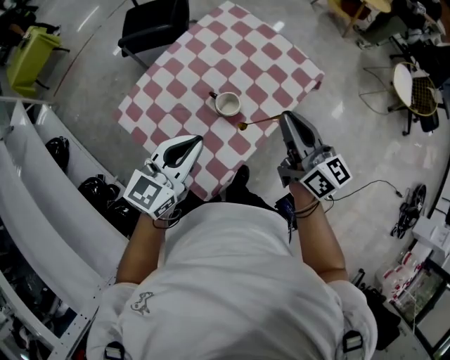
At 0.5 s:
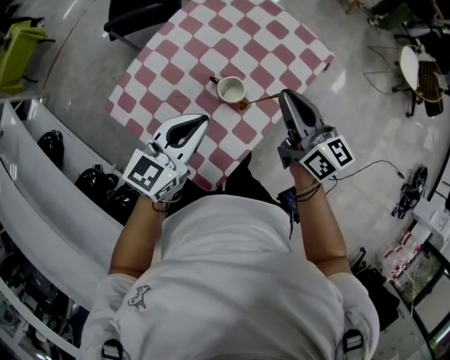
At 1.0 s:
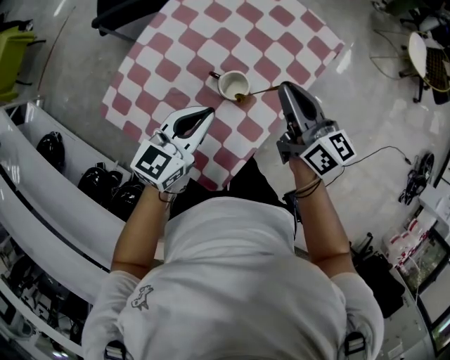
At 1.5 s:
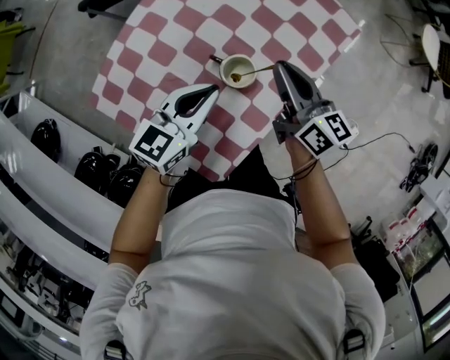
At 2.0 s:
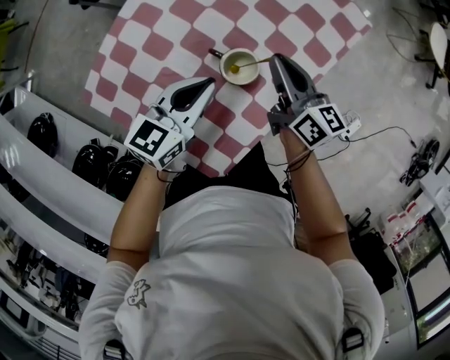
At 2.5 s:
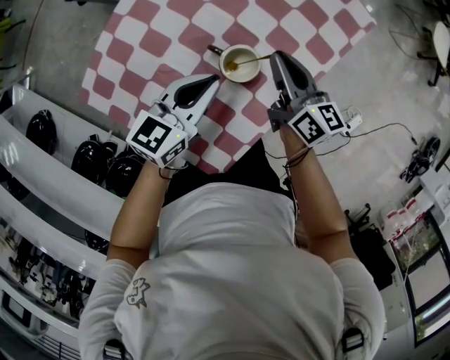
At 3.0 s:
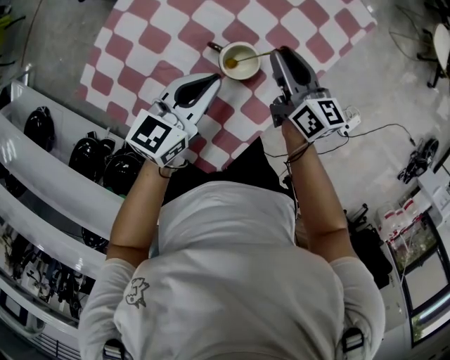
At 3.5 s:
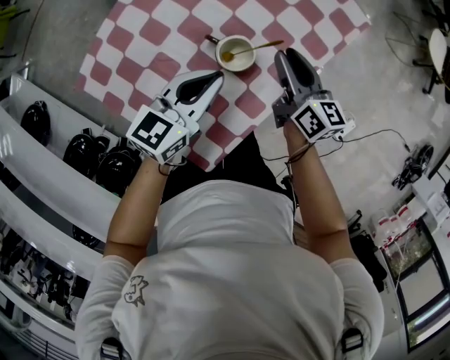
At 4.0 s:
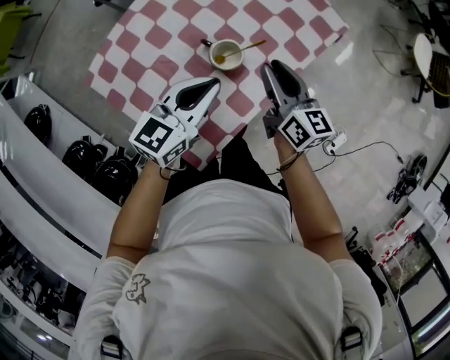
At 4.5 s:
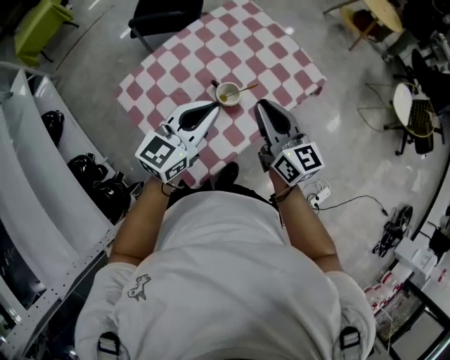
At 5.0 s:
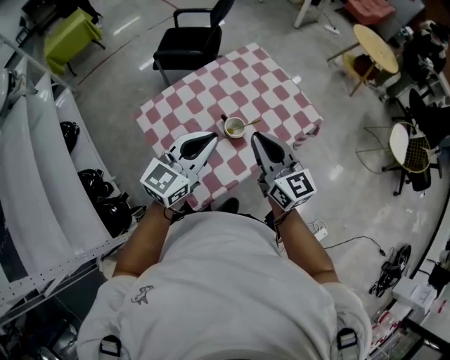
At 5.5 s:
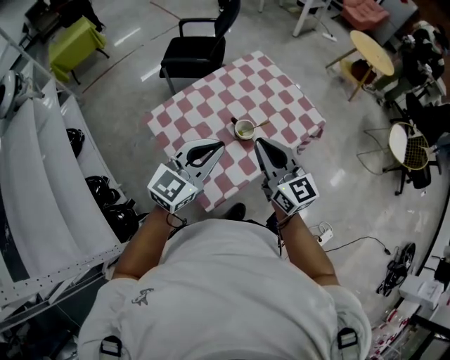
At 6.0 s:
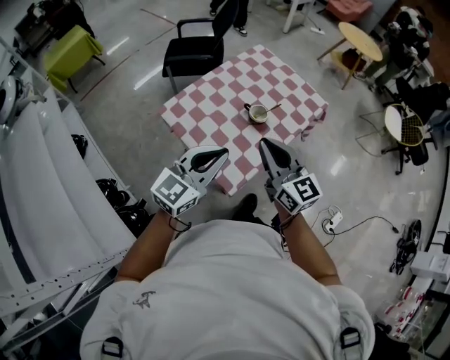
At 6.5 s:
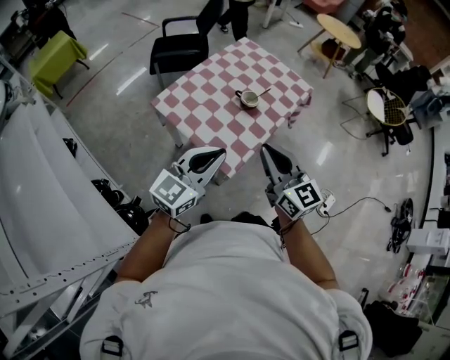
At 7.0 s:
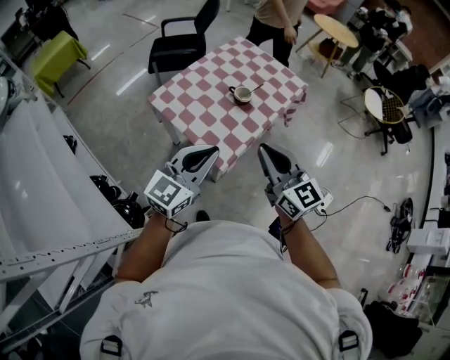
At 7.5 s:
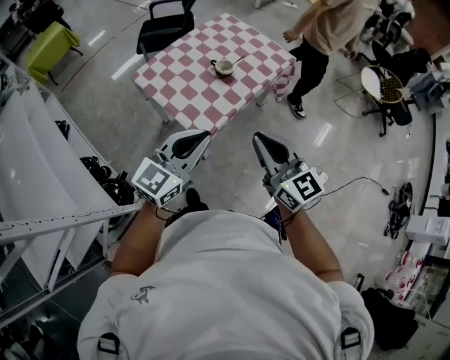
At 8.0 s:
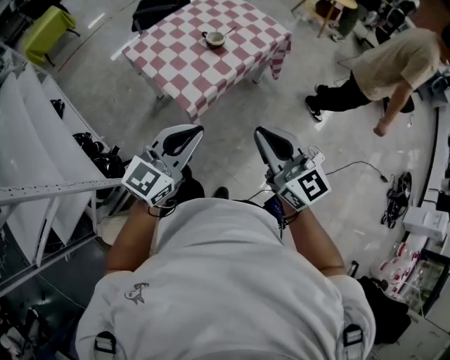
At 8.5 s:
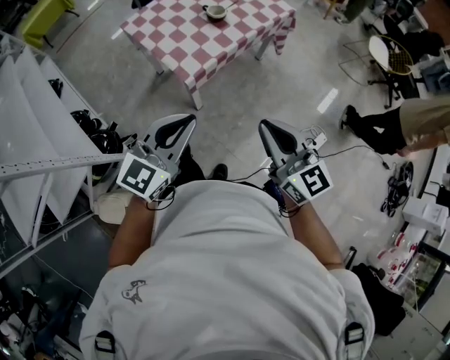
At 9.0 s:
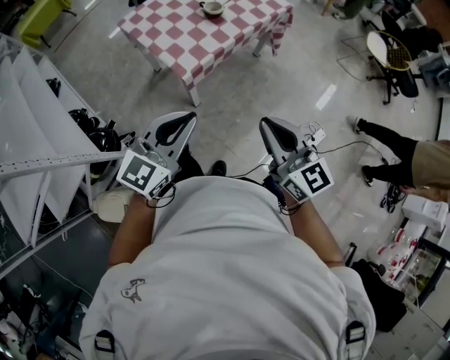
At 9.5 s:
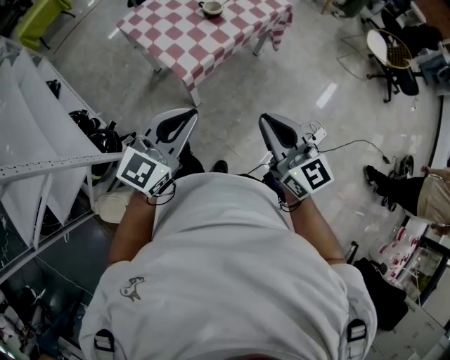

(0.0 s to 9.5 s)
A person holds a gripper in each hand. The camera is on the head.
0.0 s - 2.0 s: Both grippers travel together downward and forward, some 25 cm.
2.0 s - 4.0 s: The right gripper travels backward by roughly 5 cm, while the left gripper goes about 10 cm upward and to the right.
4.0 s - 5.5 s: The grippers both shift upward and backward by about 25 cm. The left gripper swivels roughly 20 degrees. Meanwhile the right gripper changes its angle by some 30 degrees.
5.5 s - 7.5 s: The two grippers go some 30 cm backward.
7.5 s - 9.5 s: The grippers both shift backward and to the right by about 15 cm.

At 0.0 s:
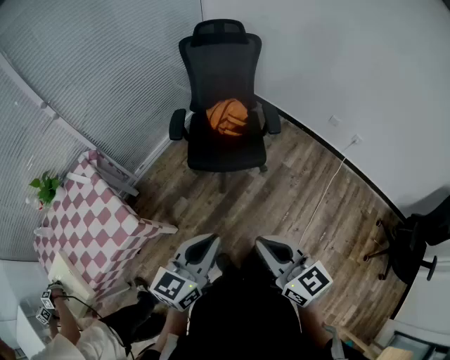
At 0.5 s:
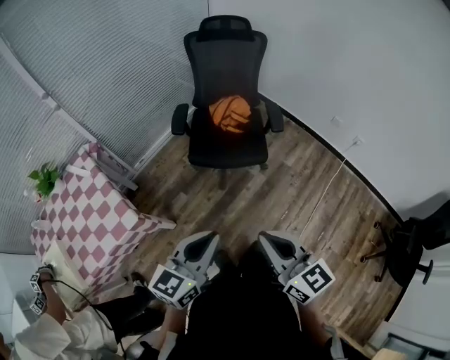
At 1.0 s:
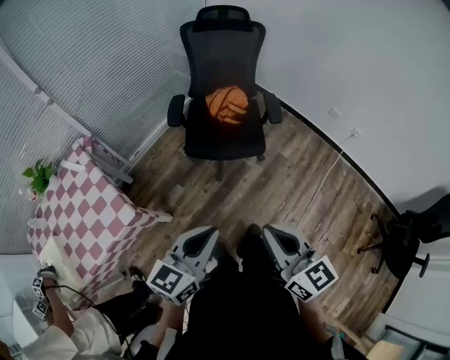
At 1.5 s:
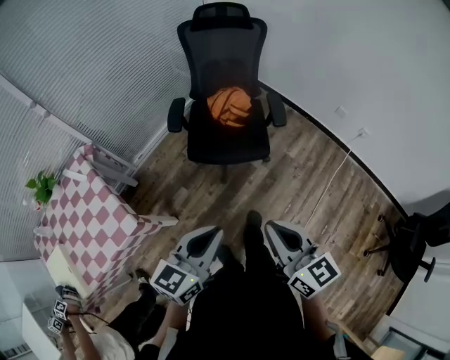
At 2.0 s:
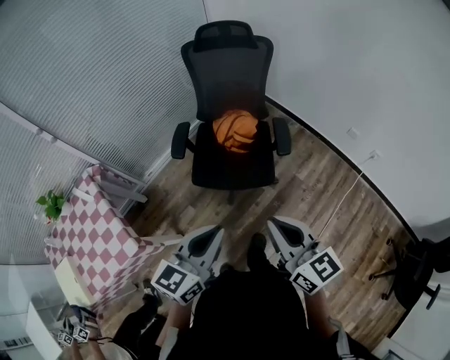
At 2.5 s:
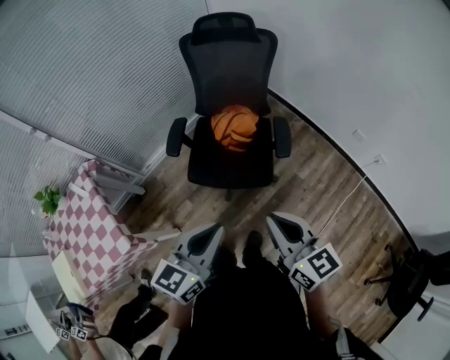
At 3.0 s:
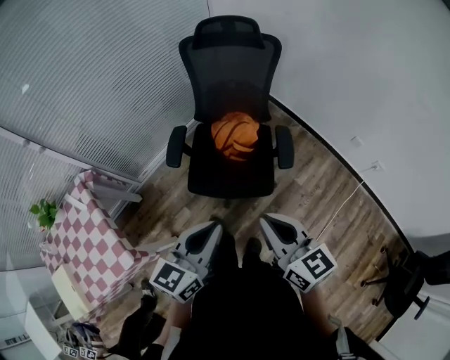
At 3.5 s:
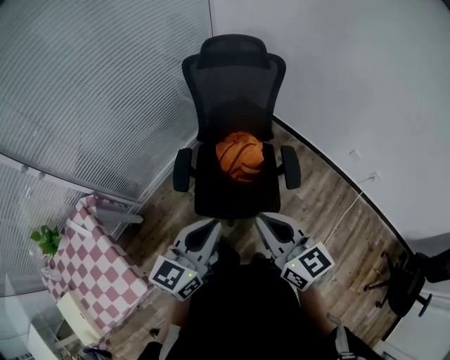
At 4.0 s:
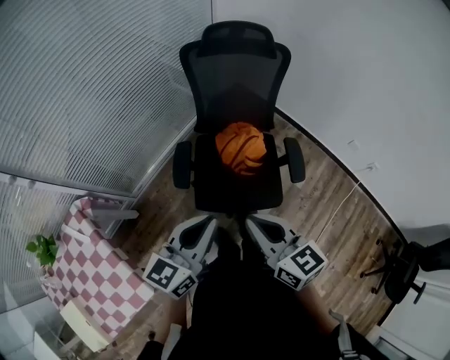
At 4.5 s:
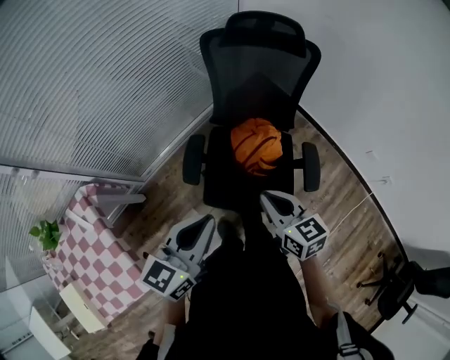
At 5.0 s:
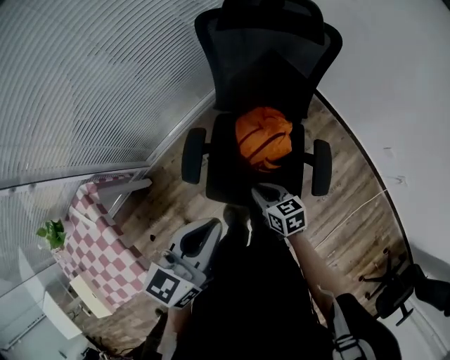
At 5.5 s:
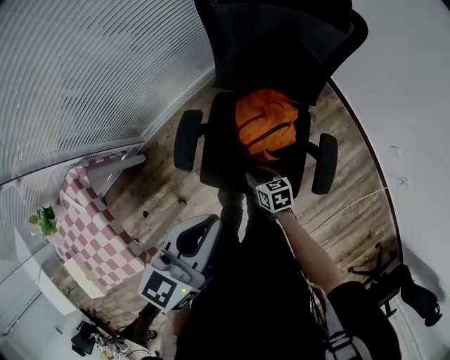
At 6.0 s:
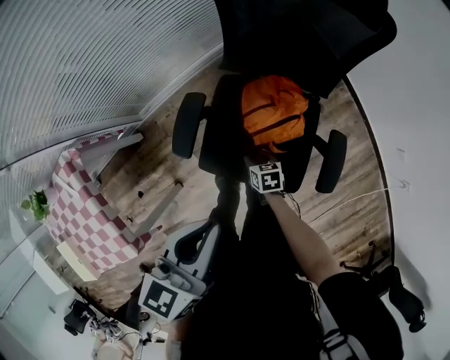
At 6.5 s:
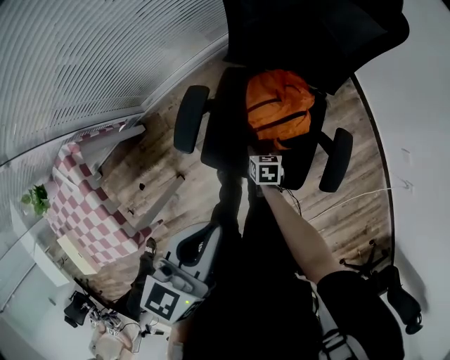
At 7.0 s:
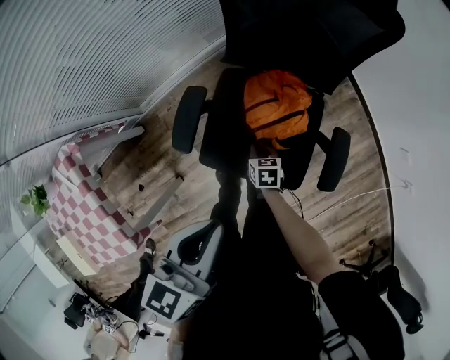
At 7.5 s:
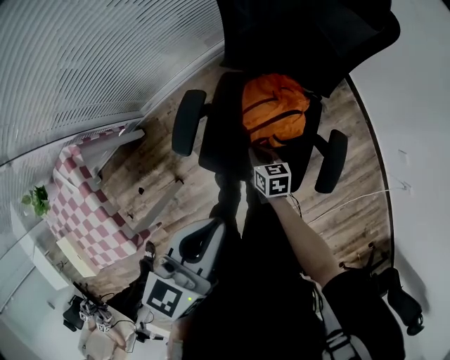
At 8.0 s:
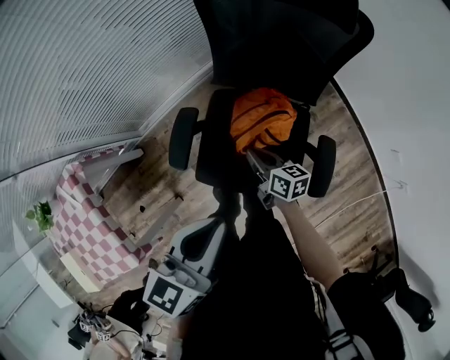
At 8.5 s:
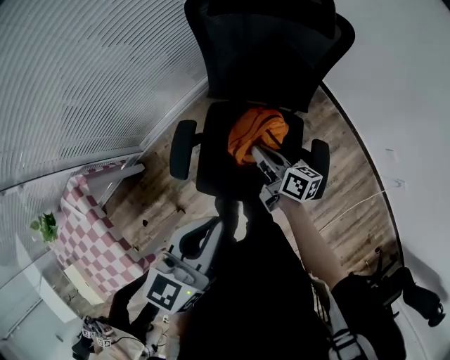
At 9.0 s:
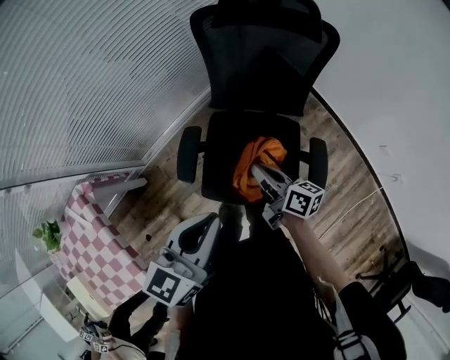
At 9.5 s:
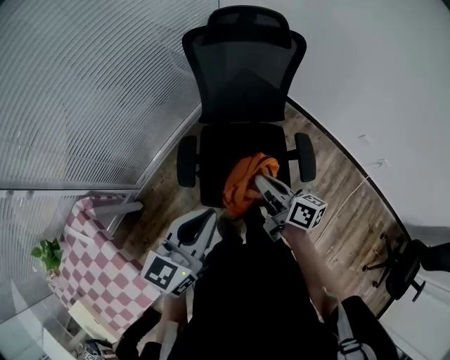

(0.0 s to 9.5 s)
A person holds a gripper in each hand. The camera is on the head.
0.0 s - 2.0 s: Both grippers move forward, roughly 20 cm.
2.0 s - 4.0 s: The grippers both shift forward and to the left by roughly 30 cm.
4.0 s - 5.5 s: The left gripper travels forward by some 15 cm; the right gripper goes roughly 40 cm downward and forward, tilts its fingers some 30 degrees downward, and opens.
5.5 s - 7.5 s: The right gripper moves about 10 cm downward and comes back, and closes up.
7.5 s - 9.5 s: The right gripper is displaced upward by approximately 30 cm, and tips its fingers upward by roughly 30 degrees. The left gripper travels backward, to the left and upward by about 15 cm, and turns by some 30 degrees.

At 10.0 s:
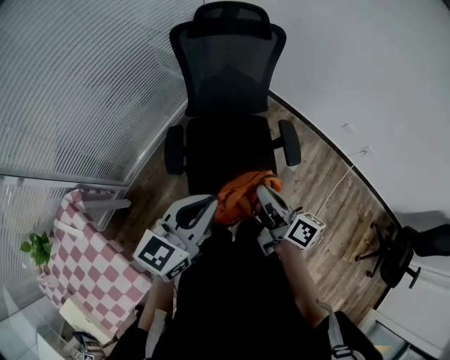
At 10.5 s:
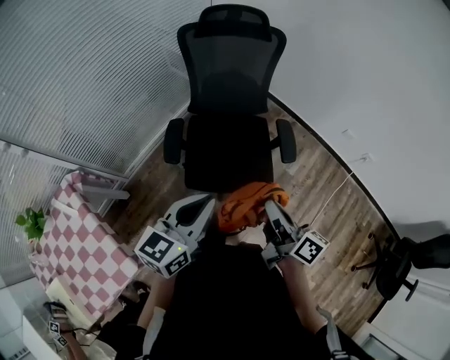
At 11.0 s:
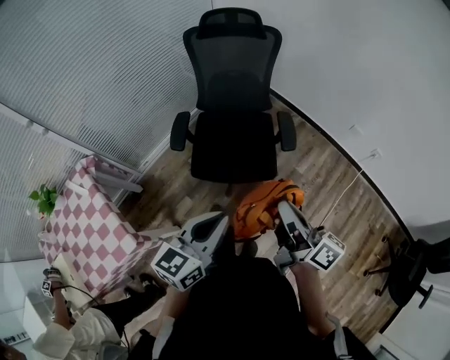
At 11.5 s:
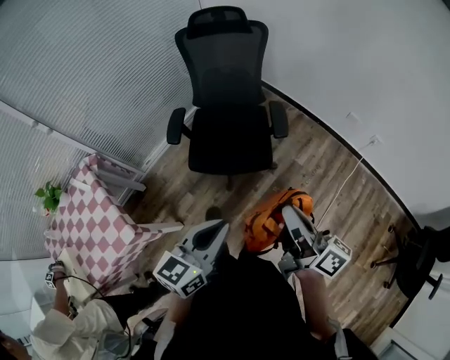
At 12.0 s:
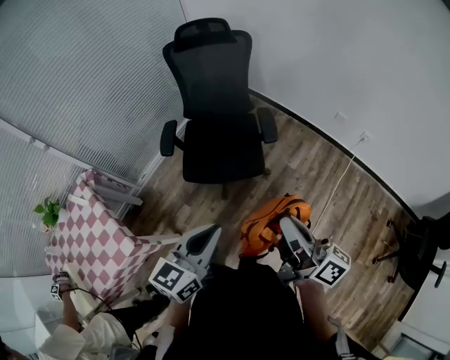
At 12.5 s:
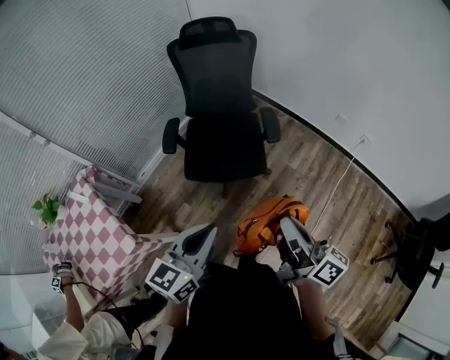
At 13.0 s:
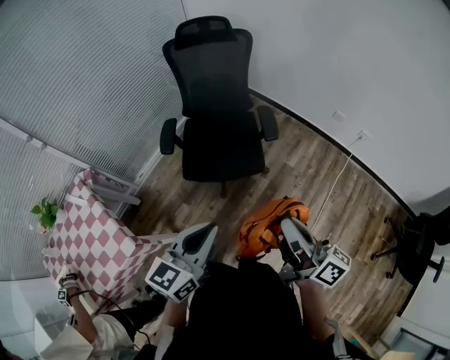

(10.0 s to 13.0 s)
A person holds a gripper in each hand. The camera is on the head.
10.0 s - 11.5 s: The left gripper heads backward and to the right, covering some 35 cm. Meanwhile the right gripper moves backward, to the right and upward, approximately 35 cm.
11.5 s - 13.0 s: The right gripper shifts by approximately 5 cm.

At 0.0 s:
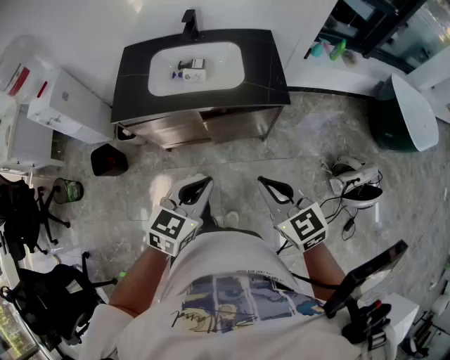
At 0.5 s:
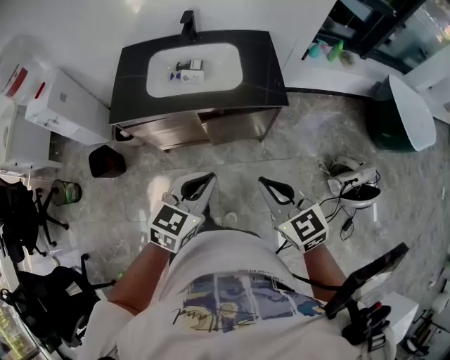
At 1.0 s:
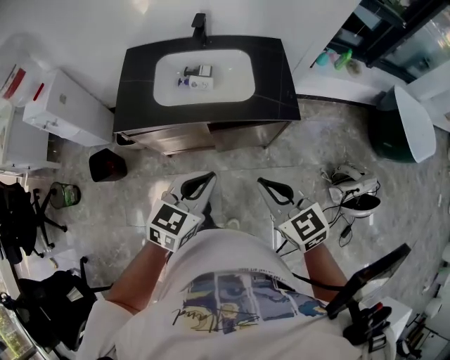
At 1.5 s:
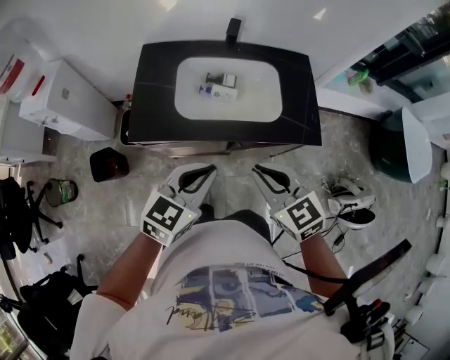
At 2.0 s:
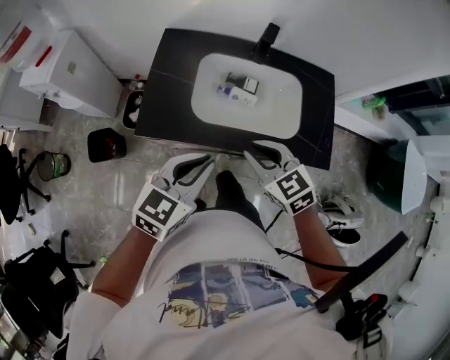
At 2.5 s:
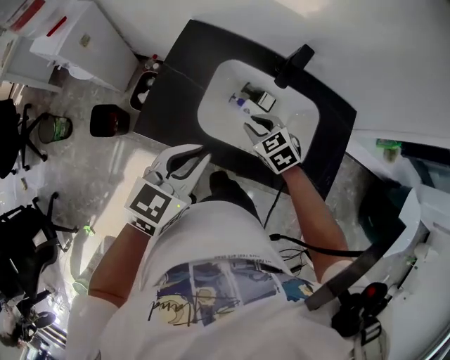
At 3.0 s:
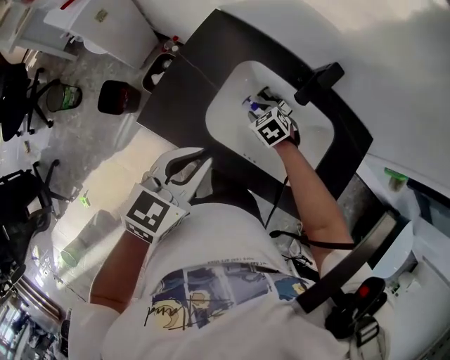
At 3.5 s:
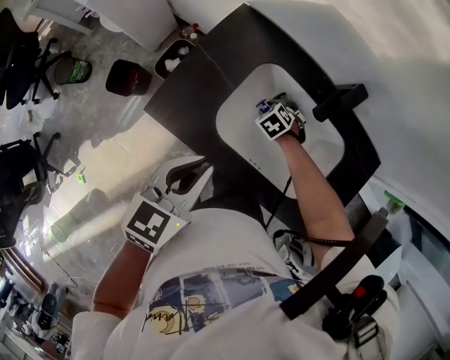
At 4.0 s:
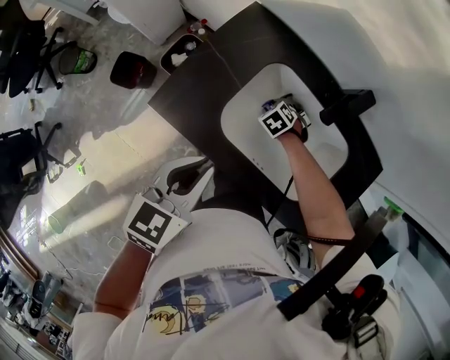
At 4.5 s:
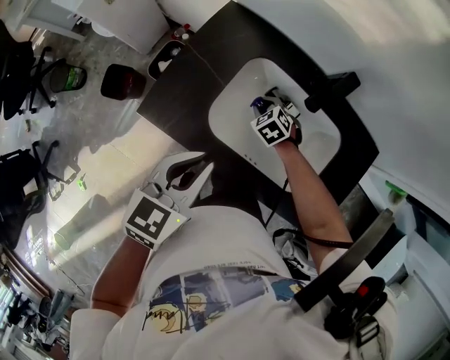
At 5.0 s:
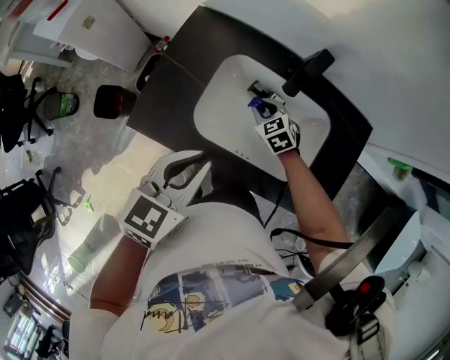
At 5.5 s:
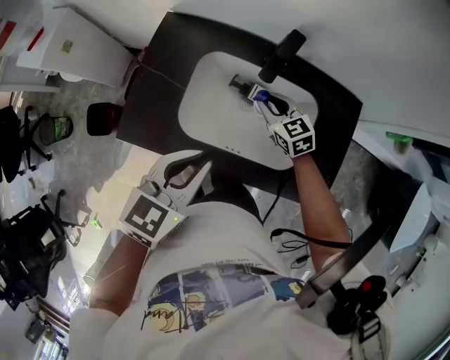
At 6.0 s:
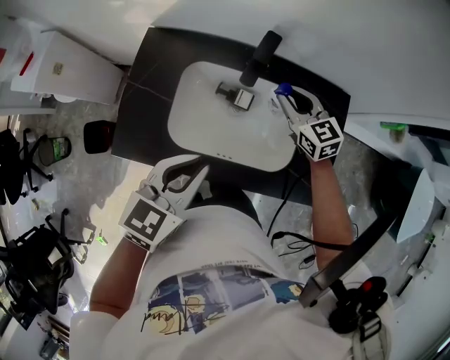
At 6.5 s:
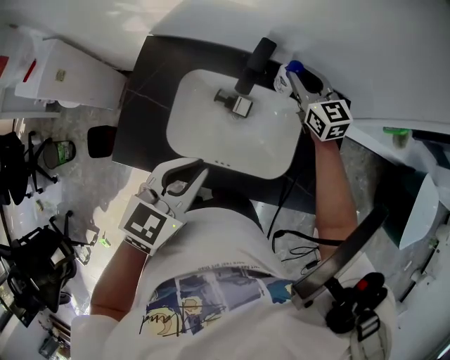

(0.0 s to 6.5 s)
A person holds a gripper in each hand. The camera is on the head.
0.0 s - 2.0 s: The two grippers go some 35 cm forward and to the left.
2.0 s - 4.5 s: The left gripper moves approximately 10 cm, and rotates roughly 30 degrees; the right gripper moves downward, some 25 cm, and turns by about 40 degrees.
4.5 s - 6.5 s: The left gripper shifts roughly 10 cm to the right, and rotates roughly 20 degrees. The right gripper is displaced upward, to the right and forward by roughly 35 cm, and tips its fingers upward by approximately 50 degrees.
